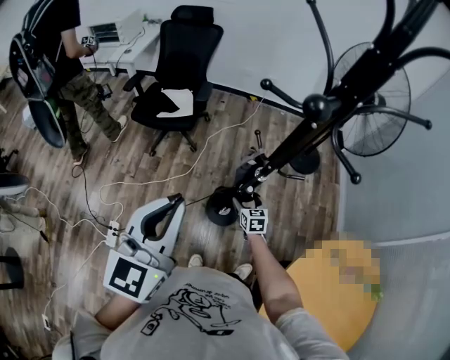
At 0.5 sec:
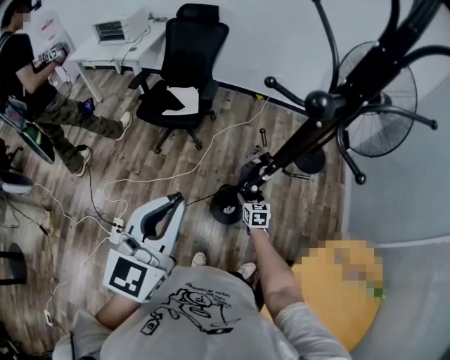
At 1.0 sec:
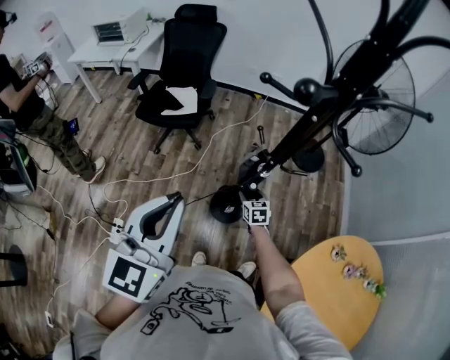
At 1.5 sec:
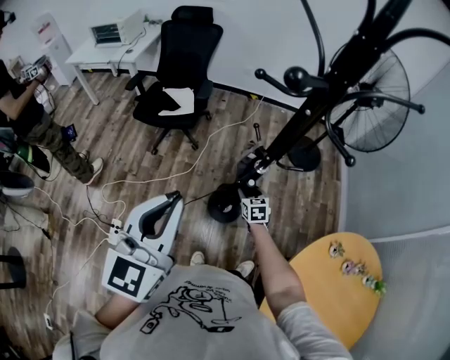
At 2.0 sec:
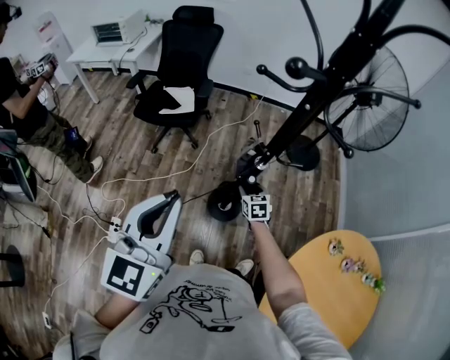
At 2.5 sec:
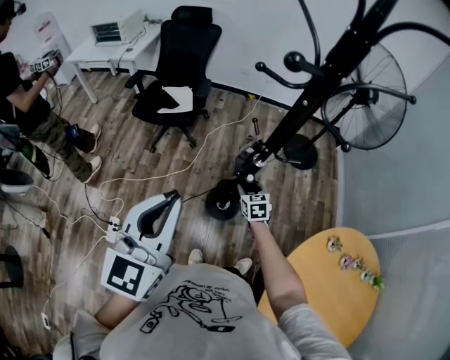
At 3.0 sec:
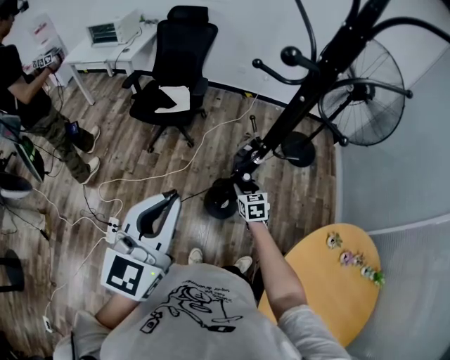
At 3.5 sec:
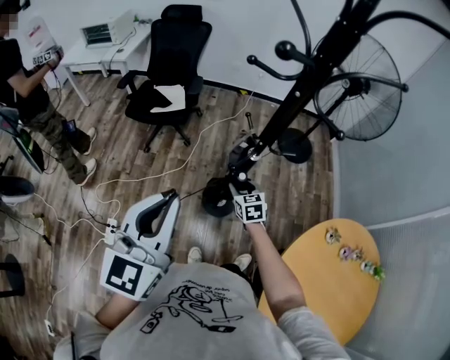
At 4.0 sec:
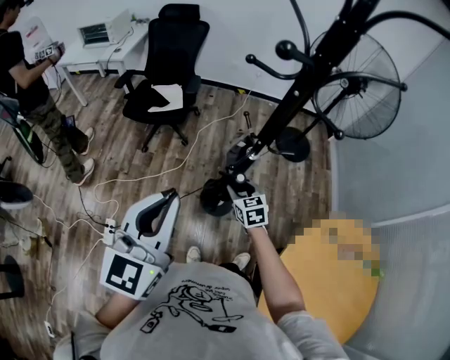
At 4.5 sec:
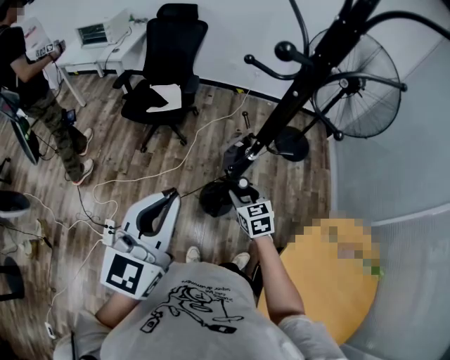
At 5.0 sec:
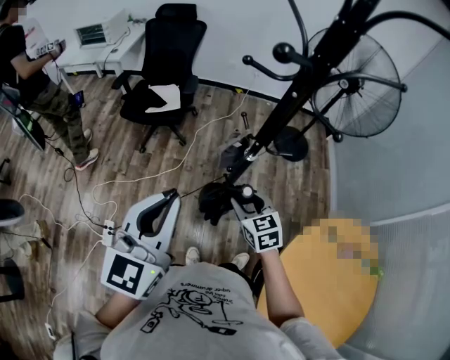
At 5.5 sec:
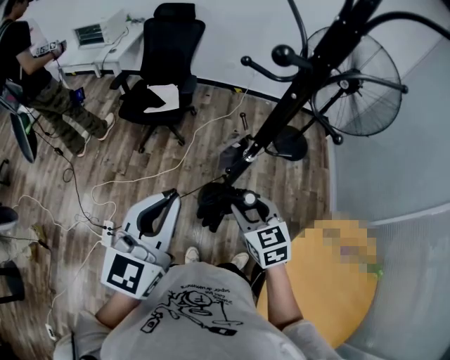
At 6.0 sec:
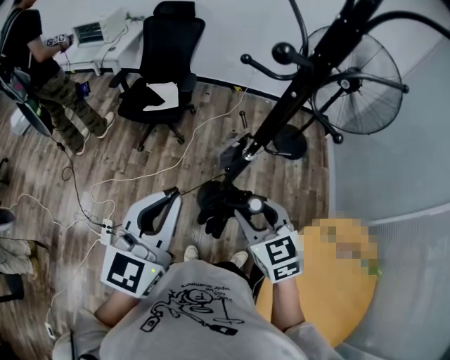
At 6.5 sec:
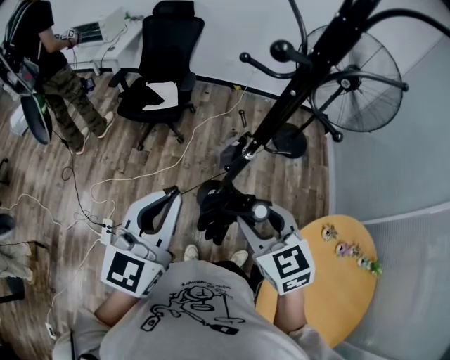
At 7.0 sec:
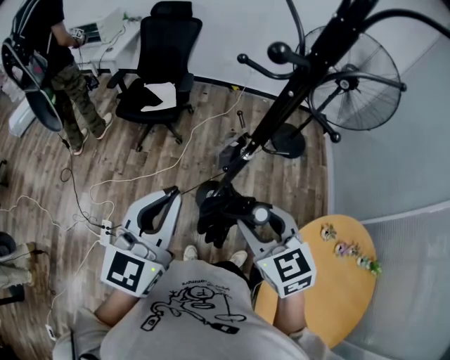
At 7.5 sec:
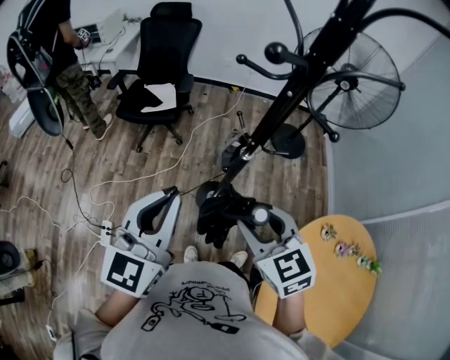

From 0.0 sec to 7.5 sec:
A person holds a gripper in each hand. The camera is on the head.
From 0.0 sec to 2.0 sec: The right gripper closes.
From 2.0 sec to 4.0 sec: The right gripper heads upward and backward, covering about 10 cm.
From 4.0 sec to 5.5 sec: The right gripper travels upward and backward by about 15 cm.
From 5.5 sec to 7.5 sec: The right gripper shifts about 10 cm upward.

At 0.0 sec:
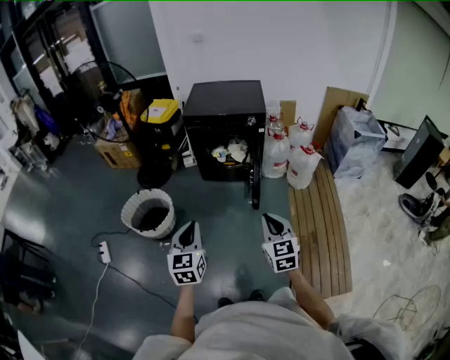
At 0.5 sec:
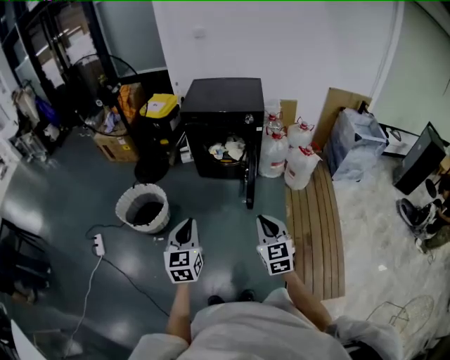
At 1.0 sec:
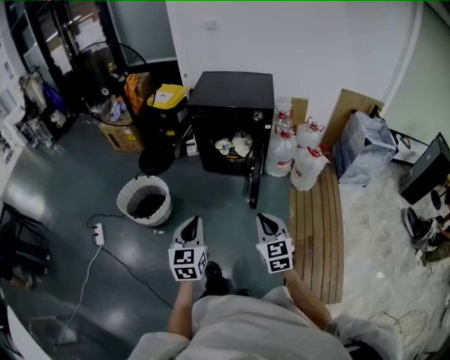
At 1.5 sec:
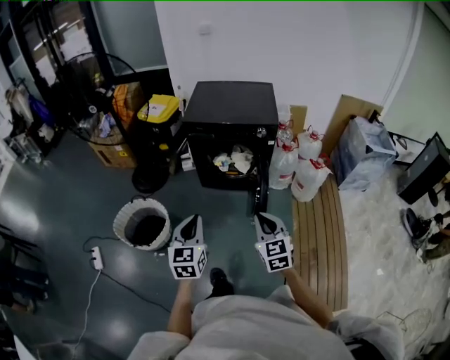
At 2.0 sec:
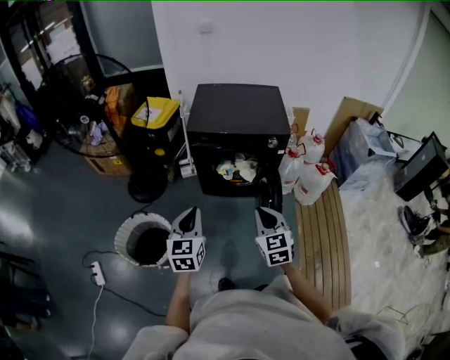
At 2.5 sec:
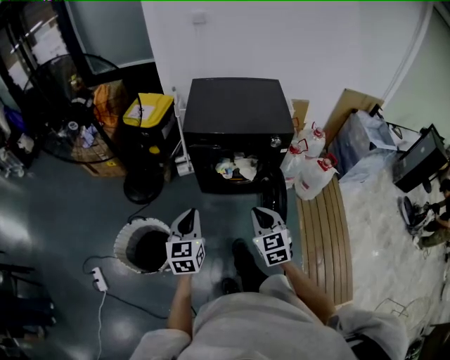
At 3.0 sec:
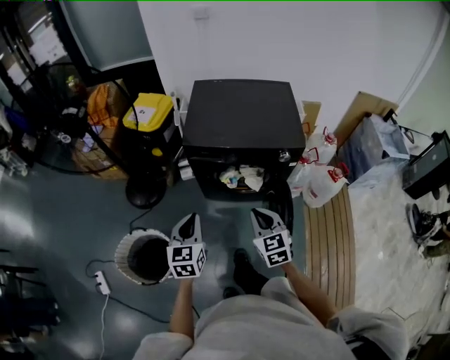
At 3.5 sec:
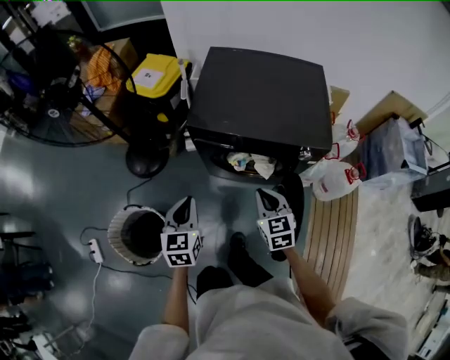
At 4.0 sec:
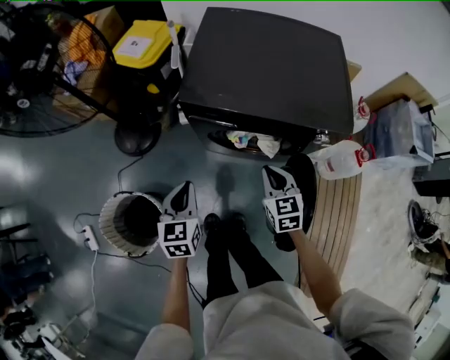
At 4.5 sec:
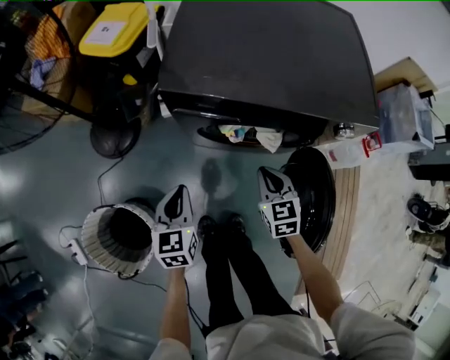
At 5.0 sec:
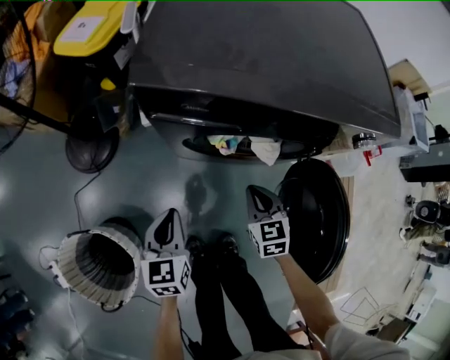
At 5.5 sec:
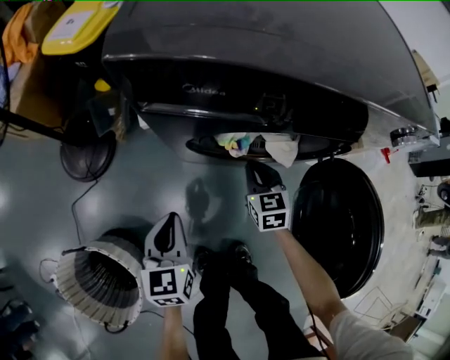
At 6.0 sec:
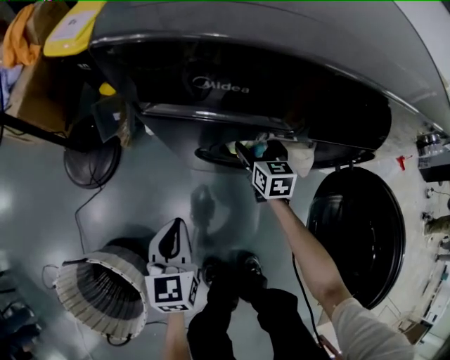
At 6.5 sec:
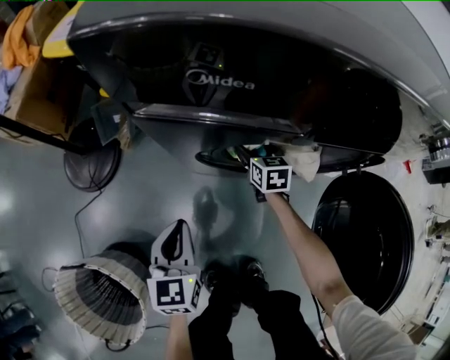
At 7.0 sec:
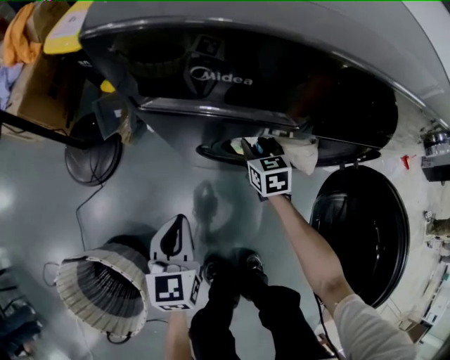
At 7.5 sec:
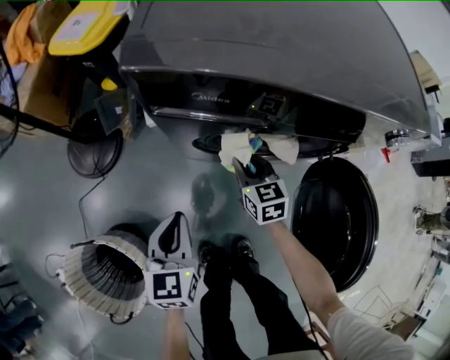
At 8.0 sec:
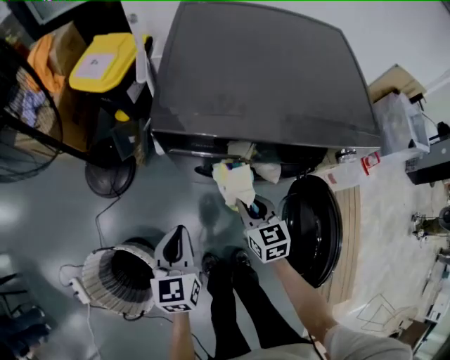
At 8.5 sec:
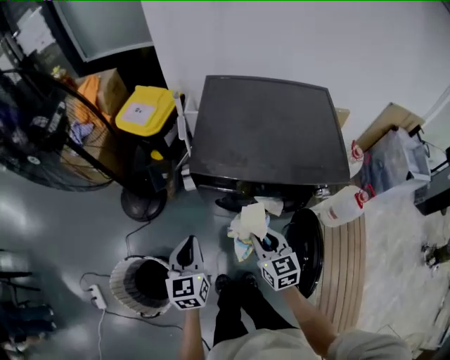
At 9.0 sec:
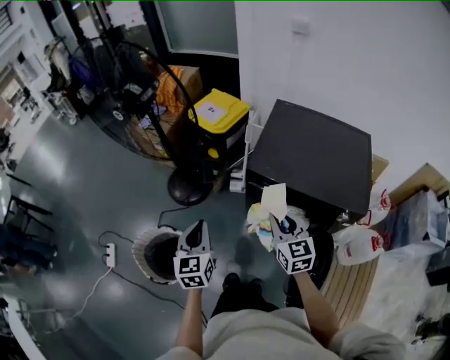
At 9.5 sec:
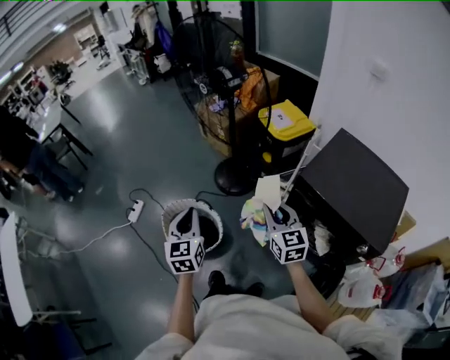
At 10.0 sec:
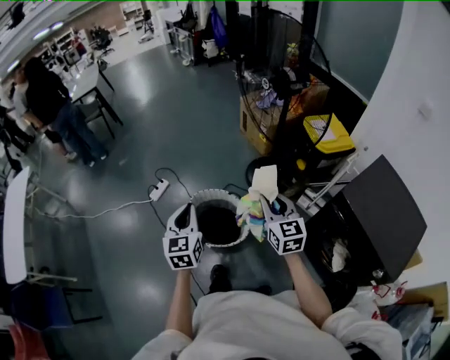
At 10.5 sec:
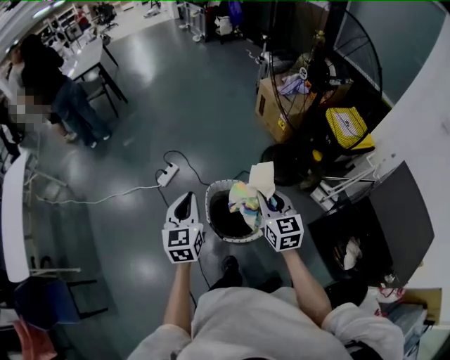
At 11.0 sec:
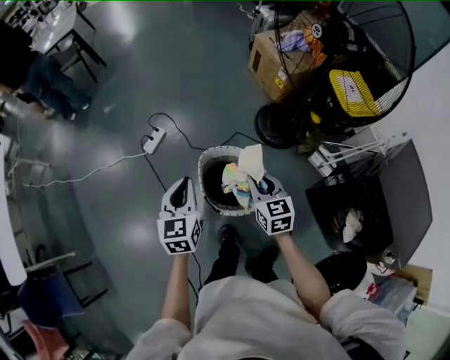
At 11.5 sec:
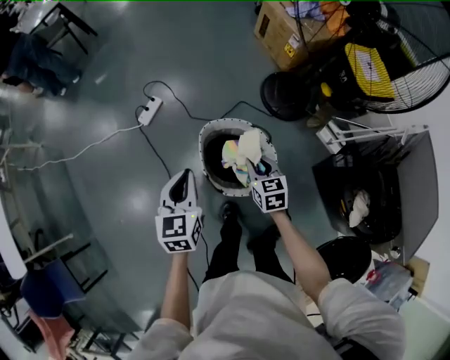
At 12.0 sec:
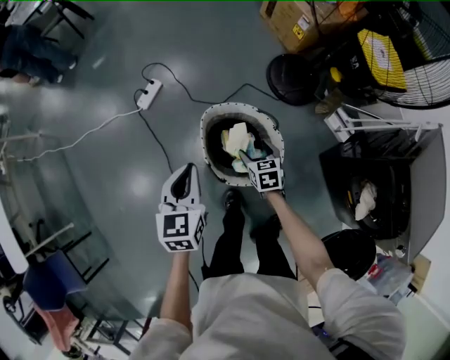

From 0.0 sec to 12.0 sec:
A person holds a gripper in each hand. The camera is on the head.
From 0.0 sec to 2.0 sec: Both grippers move forward, some 35 cm.
From 2.0 sec to 4.0 sec: Both grippers travel together forward and downward, roughly 40 cm.
From 4.0 sec to 6.0 sec: The left gripper heads downward, covering some 35 cm. The right gripper shifts roughly 50 cm downward and forward, and opens its fingers.
From 6.0 sec to 8.0 sec: The right gripper shifts some 30 cm upward and backward, and closes up. The left gripper shifts some 20 cm upward.
From 8.0 sec to 10.0 sec: Both grippers are carried some 50 cm. The right gripper changes its angle by about 60 degrees. The left gripper turns by some 60 degrees.
From 10.0 sec to 12.0 sec: The right gripper is displaced downward and to the left by roughly 50 cm, tilts its fingers roughly 40 degrees downward, and opens its fingers. Meanwhile the left gripper moves downward, forward and to the left, approximately 30 cm.

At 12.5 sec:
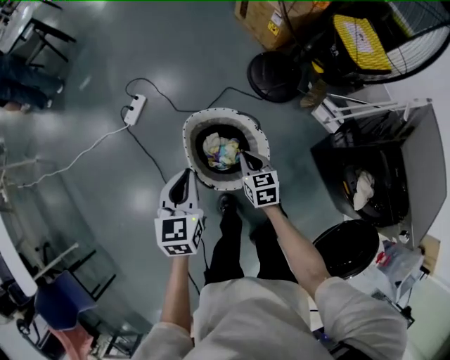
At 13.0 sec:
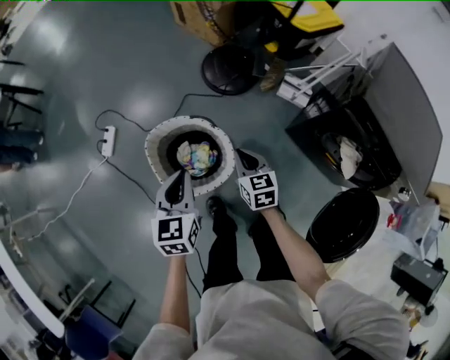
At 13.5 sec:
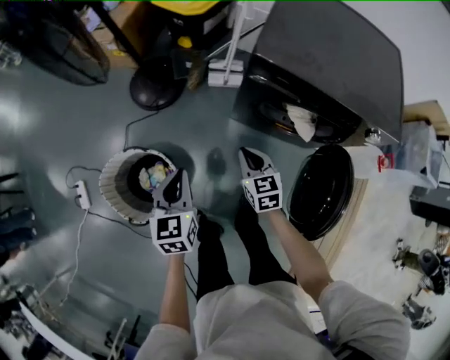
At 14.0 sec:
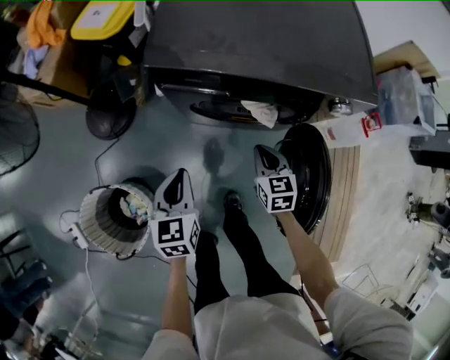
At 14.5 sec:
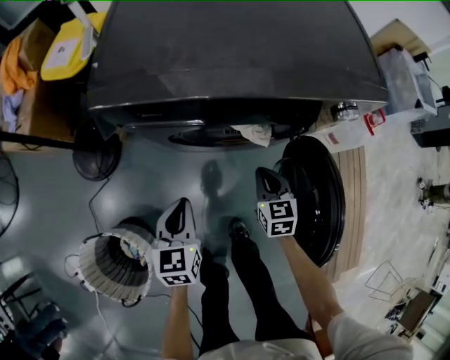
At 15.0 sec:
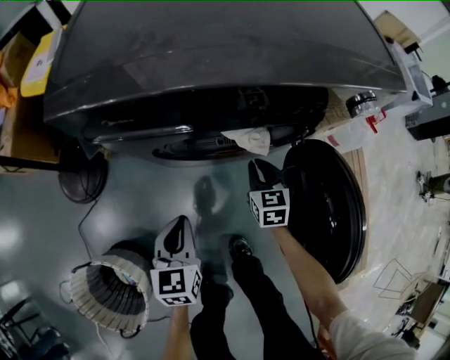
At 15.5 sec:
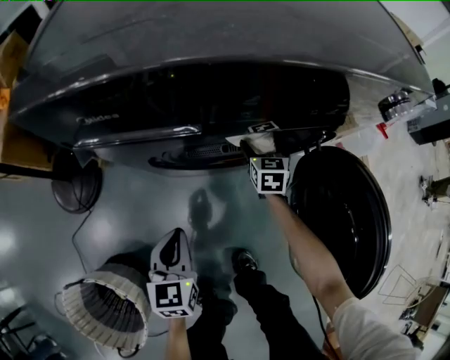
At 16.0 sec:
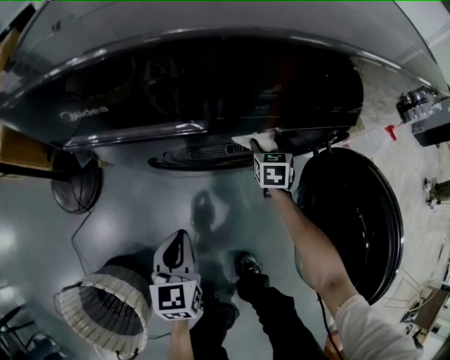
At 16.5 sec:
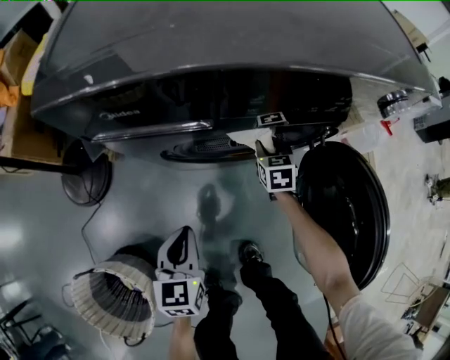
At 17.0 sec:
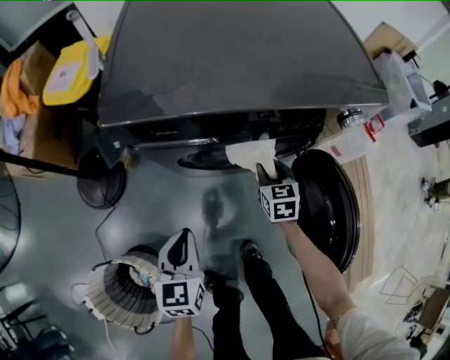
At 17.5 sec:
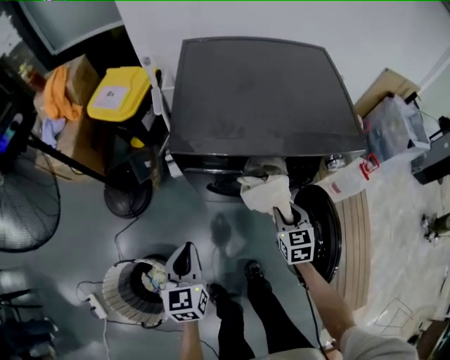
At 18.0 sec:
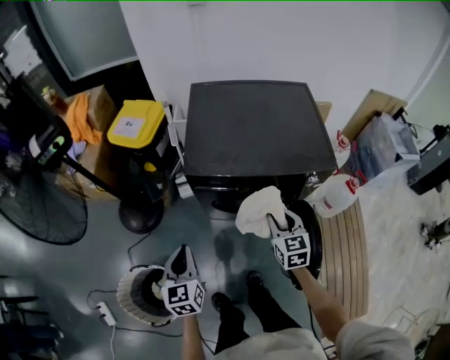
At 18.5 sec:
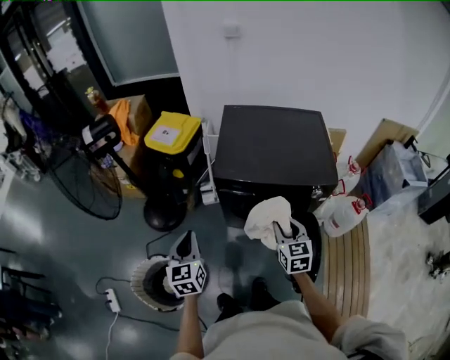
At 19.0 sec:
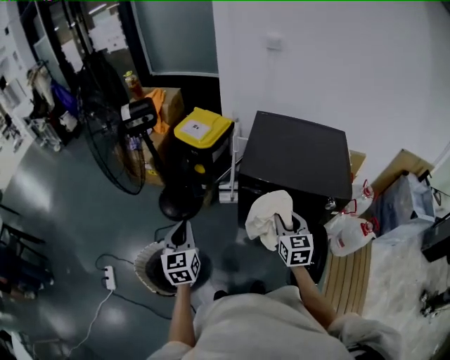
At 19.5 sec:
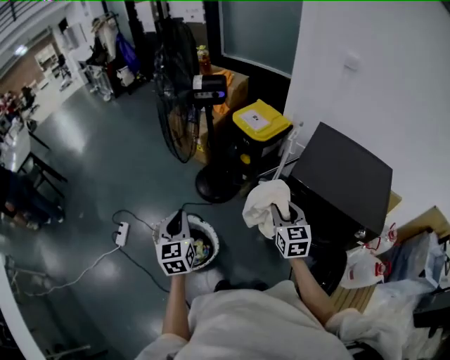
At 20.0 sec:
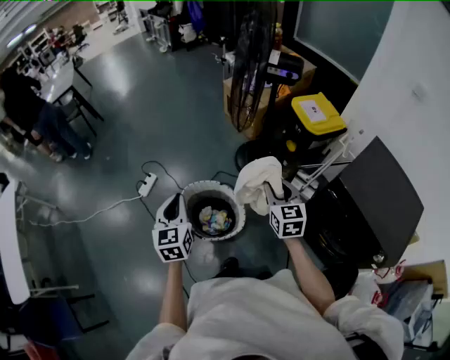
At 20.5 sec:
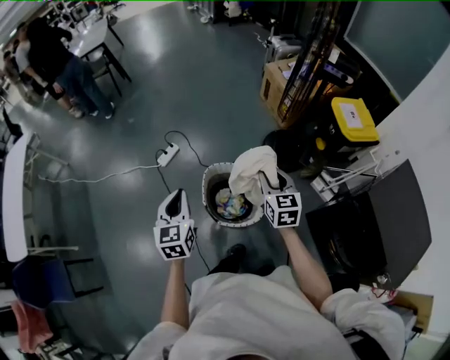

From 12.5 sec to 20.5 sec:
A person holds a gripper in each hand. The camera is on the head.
From 12.5 sec to 14.5 sec: The two grippers travel together, about 70 cm. The right gripper rotates about 70 degrees. Meanwhile the left gripper changes its angle by some 60 degrees.
From 14.5 sec to 16.5 sec: The left gripper moves downward, roughly 10 cm; the right gripper travels downward and forward by about 20 cm, and opens, then closes once more.
From 16.5 sec to 18.5 sec: The right gripper travels upward and backward by approximately 60 cm, and rotates roughly 20 degrees. The left gripper shifts roughly 50 cm upward, and swivels roughly 30 degrees.
From 18.5 sec to 20.5 sec: The two grippers travel together, roughly 50 cm. The right gripper changes its angle by about 60 degrees. Meanwhile the left gripper rotates approximately 60 degrees.
